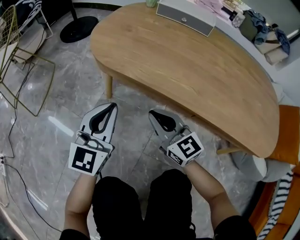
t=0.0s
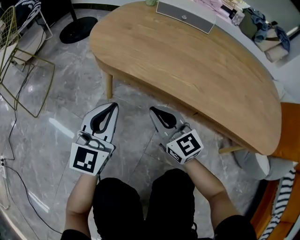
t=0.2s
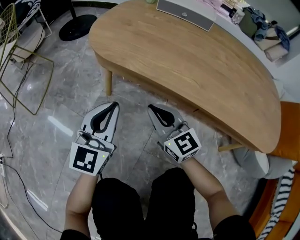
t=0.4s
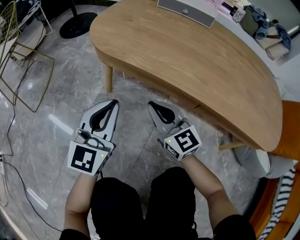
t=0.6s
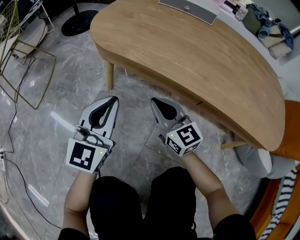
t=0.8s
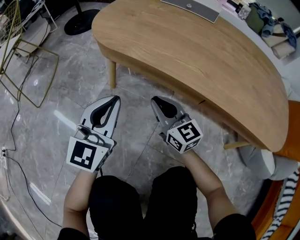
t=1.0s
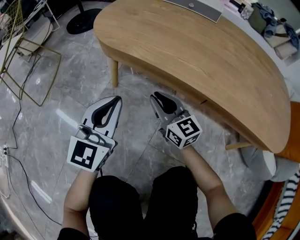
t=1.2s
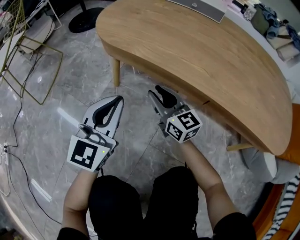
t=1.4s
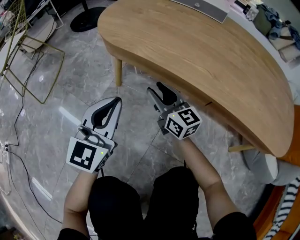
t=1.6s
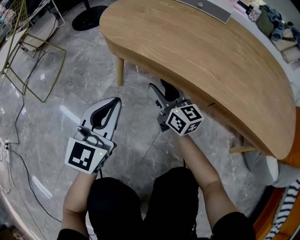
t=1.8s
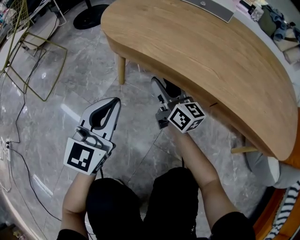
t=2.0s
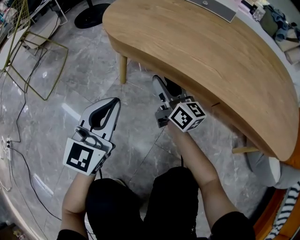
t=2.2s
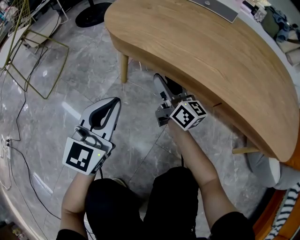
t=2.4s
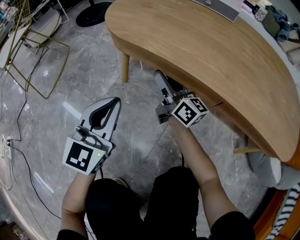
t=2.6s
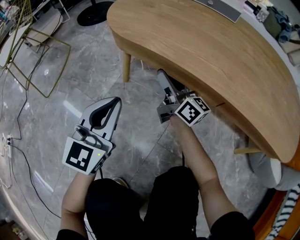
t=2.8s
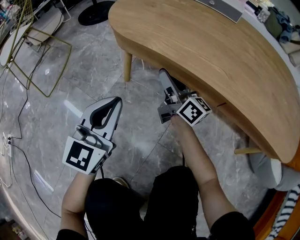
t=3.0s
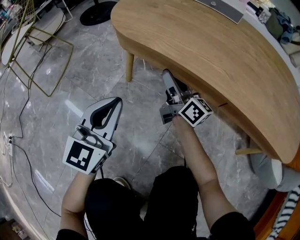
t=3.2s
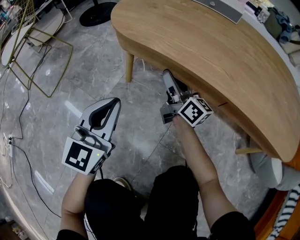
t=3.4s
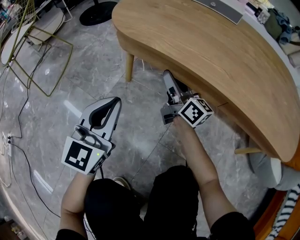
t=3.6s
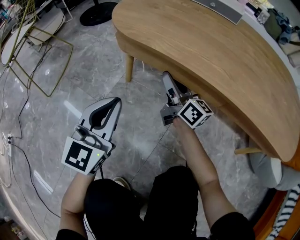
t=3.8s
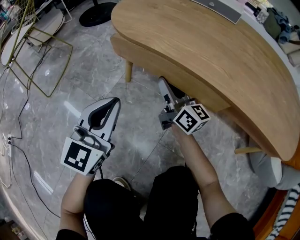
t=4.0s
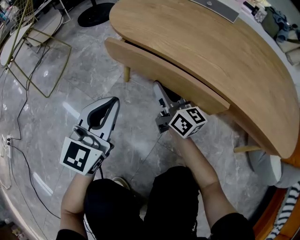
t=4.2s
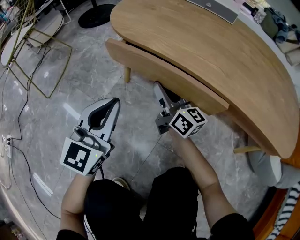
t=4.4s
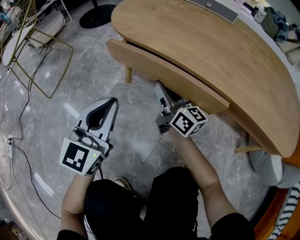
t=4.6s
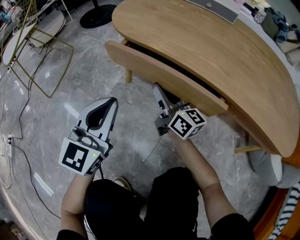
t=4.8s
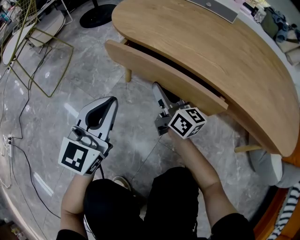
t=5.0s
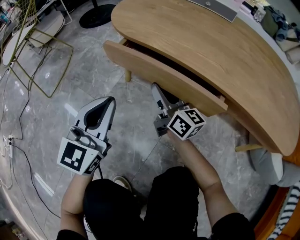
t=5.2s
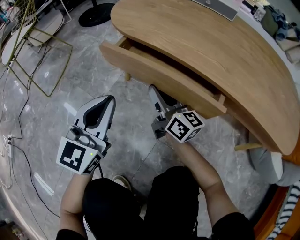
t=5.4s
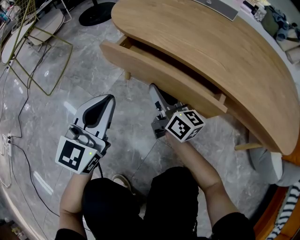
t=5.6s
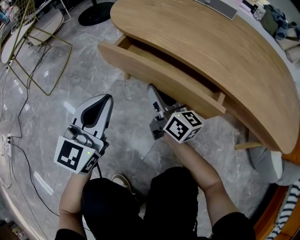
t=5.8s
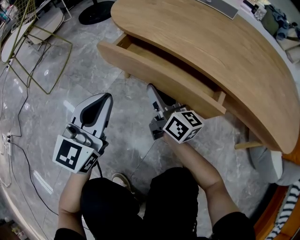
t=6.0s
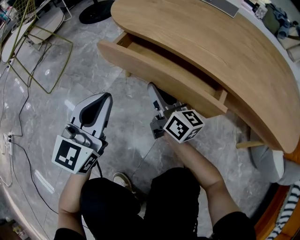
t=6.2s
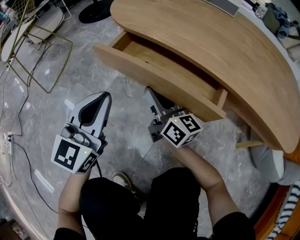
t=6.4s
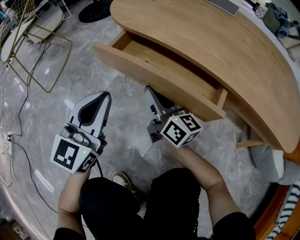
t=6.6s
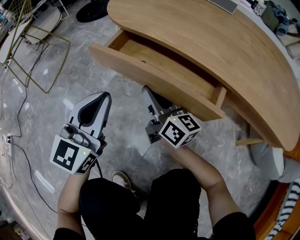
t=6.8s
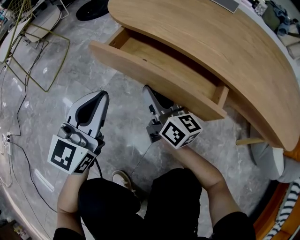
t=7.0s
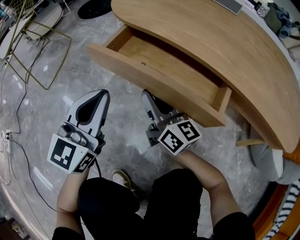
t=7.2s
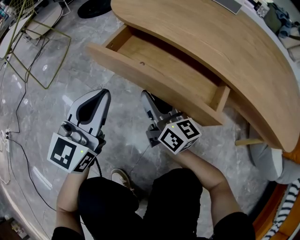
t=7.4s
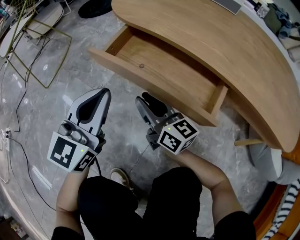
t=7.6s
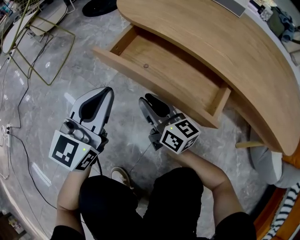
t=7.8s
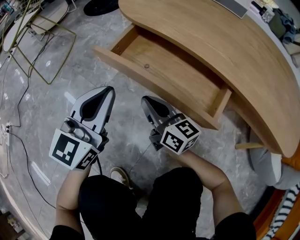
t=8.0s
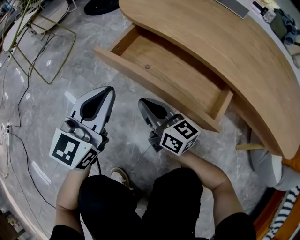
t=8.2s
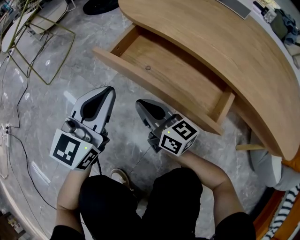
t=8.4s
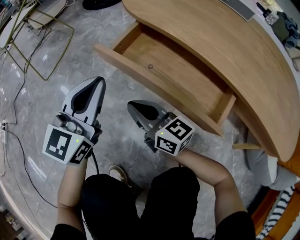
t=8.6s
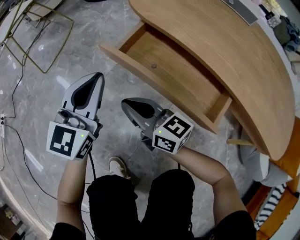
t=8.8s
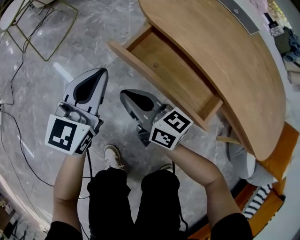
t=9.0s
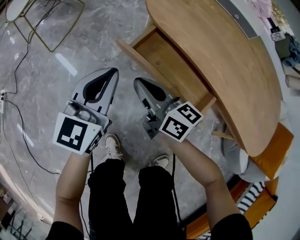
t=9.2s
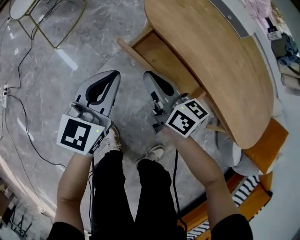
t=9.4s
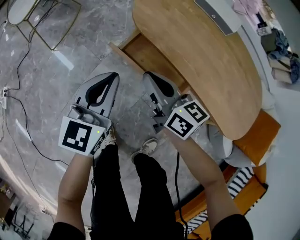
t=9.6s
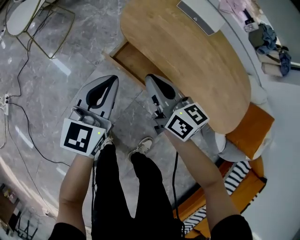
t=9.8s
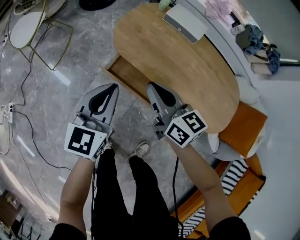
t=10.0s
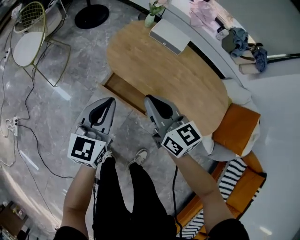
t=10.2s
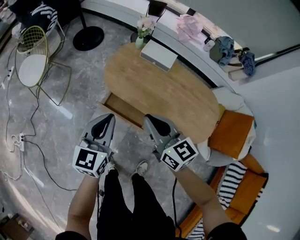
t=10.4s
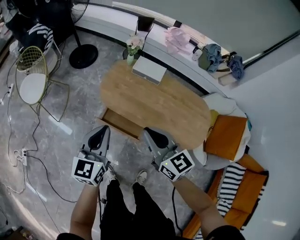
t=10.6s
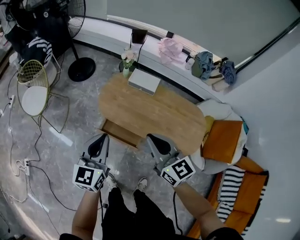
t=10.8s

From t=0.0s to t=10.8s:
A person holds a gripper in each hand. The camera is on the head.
From t=0.0s to t=1.6s: The right gripper shifts about 10 cm forward and downward, and opens its fingers.
From t=1.6s to t=3.0s: The right gripper shifts by about 5 cm, and turns by approximately 30 degrees.
From t=3.0s to t=4.6s: The right gripper moves about 5 cm, and closes its fingers.
From t=4.6s to t=6.2s: There are only small adjustments of the grippers.
From t=6.2s to t=7.8s: The right gripper travels backward by about 5 cm.
From t=7.8s to t=9.2s: The right gripper goes approximately 15 cm upward, and closes up, while the left gripper is displaced upward by about 10 cm.
From t=9.2s to t=10.8s: The two grippers go some 50 cm upward. The right gripper changes its angle by roughly 40 degrees.

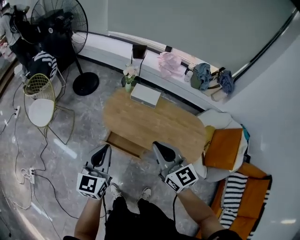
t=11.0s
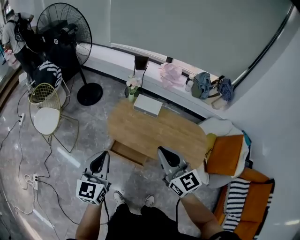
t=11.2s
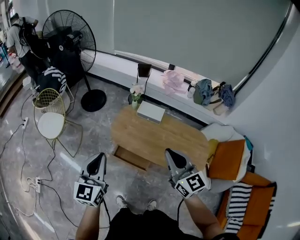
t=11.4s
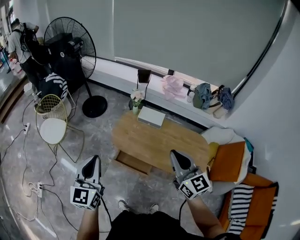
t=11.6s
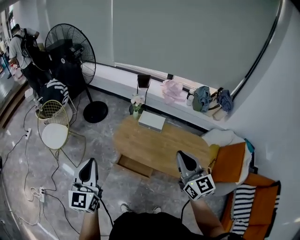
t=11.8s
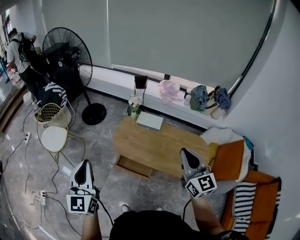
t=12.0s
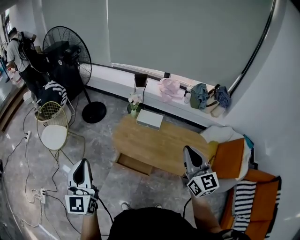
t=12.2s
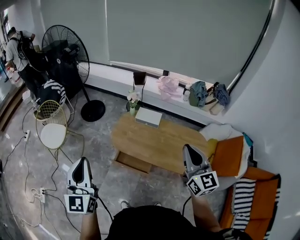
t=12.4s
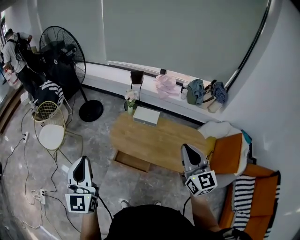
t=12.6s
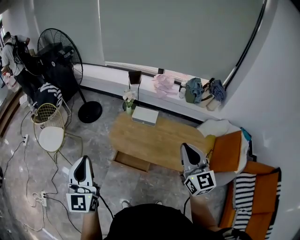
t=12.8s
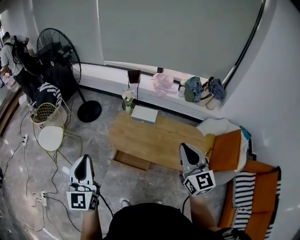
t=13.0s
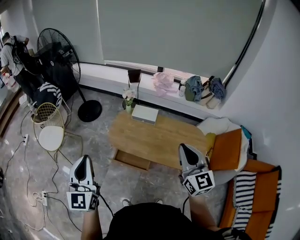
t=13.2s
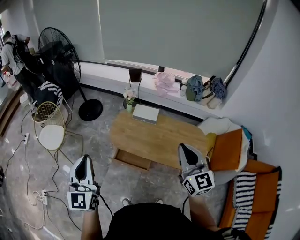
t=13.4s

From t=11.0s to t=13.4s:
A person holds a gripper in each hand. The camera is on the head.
From t=11.0s to t=12.2s: The left gripper goes roughly 20 cm upward and to the left, and turns by roughly 20 degrees. Meanwhile the right gripper shifts roughly 15 cm upward and to the right, and rotates roughly 20 degrees.
From t=12.2s to t=13.4s: The grippers move only a little.

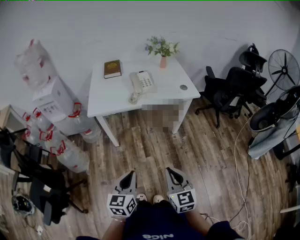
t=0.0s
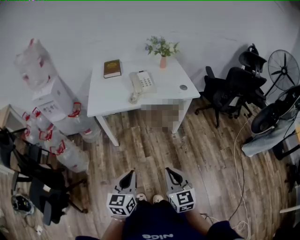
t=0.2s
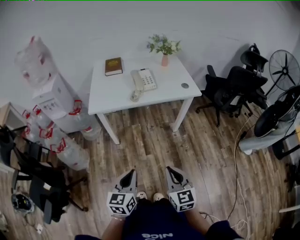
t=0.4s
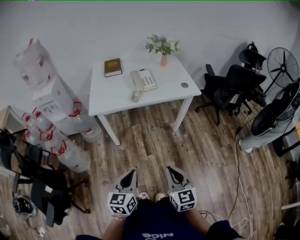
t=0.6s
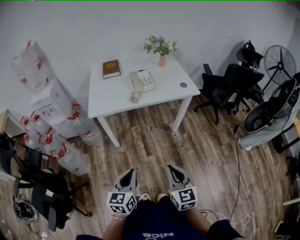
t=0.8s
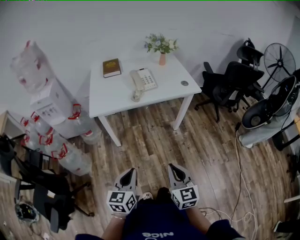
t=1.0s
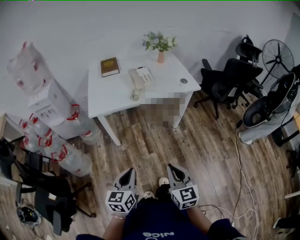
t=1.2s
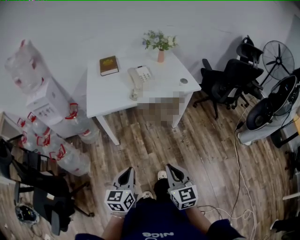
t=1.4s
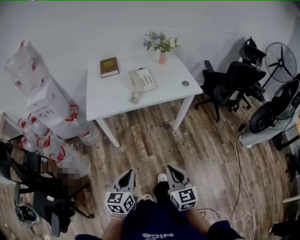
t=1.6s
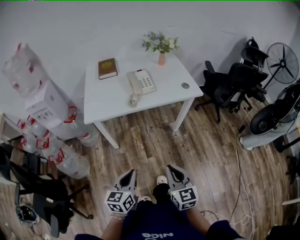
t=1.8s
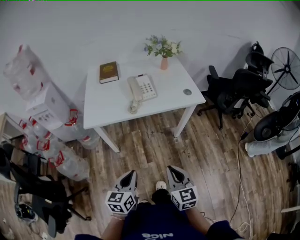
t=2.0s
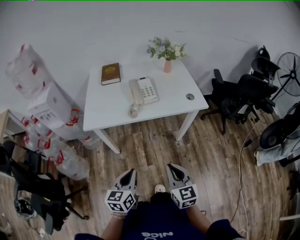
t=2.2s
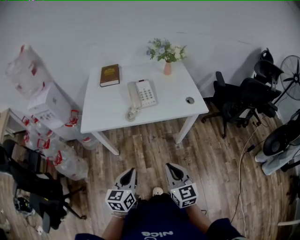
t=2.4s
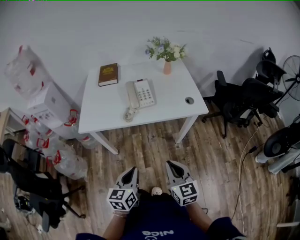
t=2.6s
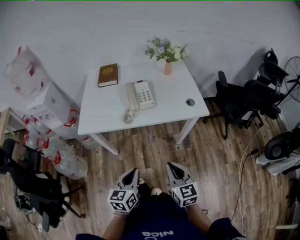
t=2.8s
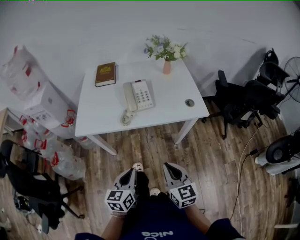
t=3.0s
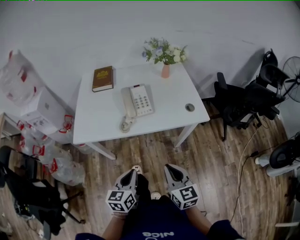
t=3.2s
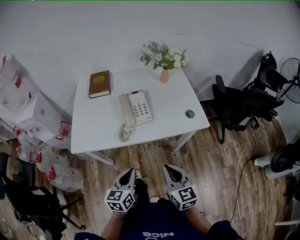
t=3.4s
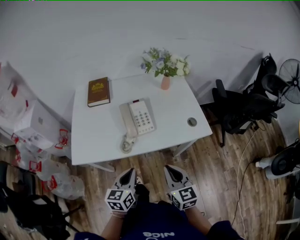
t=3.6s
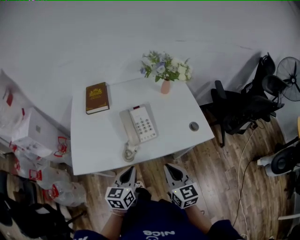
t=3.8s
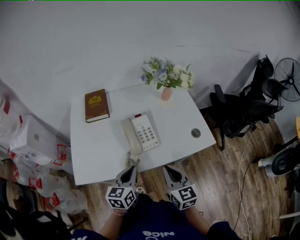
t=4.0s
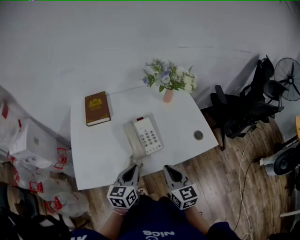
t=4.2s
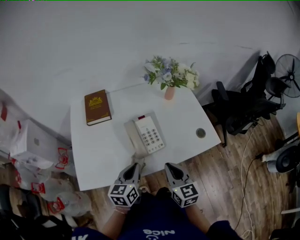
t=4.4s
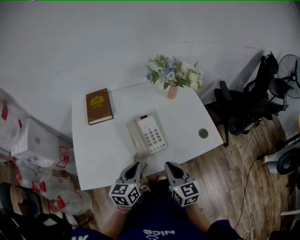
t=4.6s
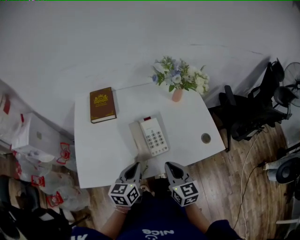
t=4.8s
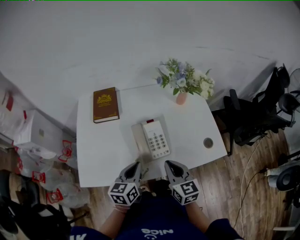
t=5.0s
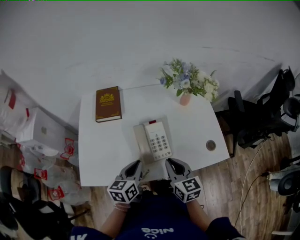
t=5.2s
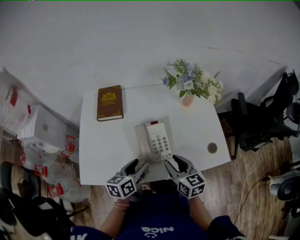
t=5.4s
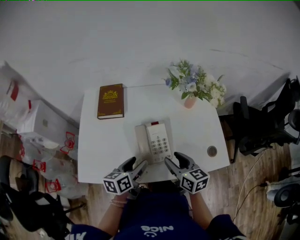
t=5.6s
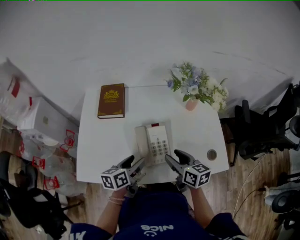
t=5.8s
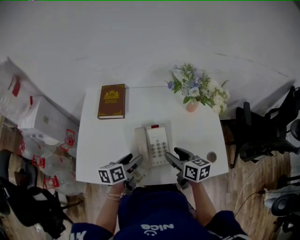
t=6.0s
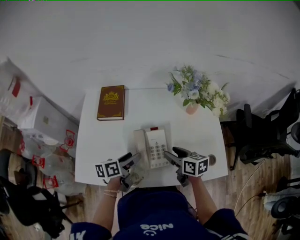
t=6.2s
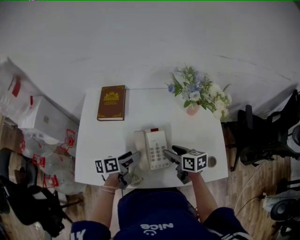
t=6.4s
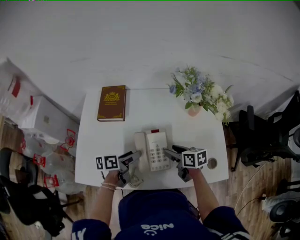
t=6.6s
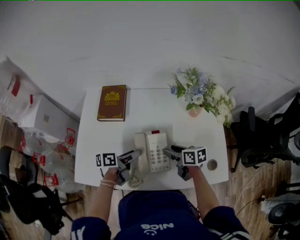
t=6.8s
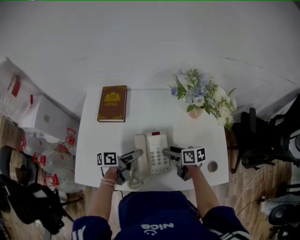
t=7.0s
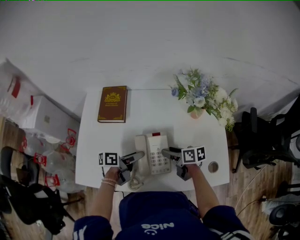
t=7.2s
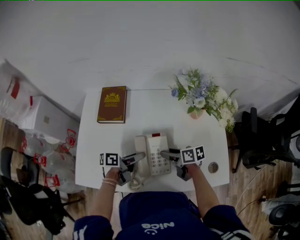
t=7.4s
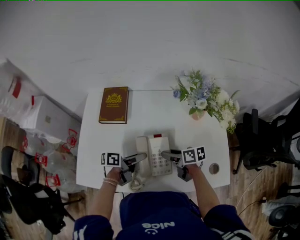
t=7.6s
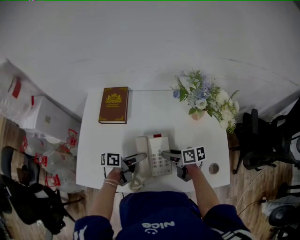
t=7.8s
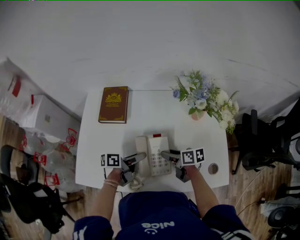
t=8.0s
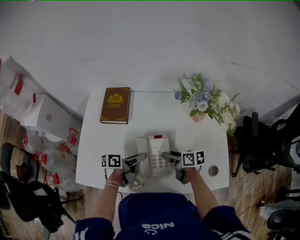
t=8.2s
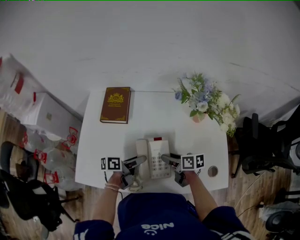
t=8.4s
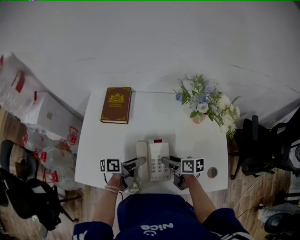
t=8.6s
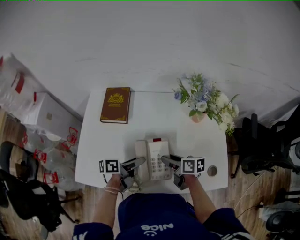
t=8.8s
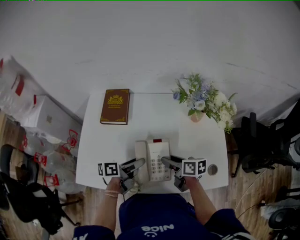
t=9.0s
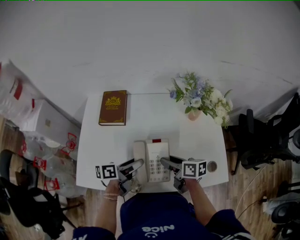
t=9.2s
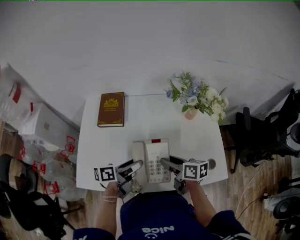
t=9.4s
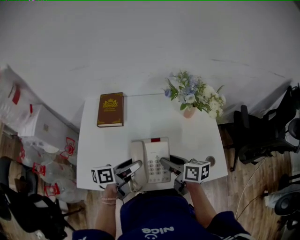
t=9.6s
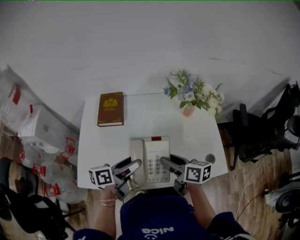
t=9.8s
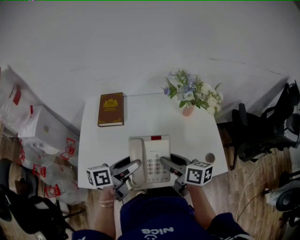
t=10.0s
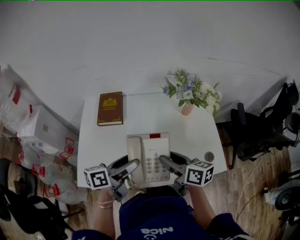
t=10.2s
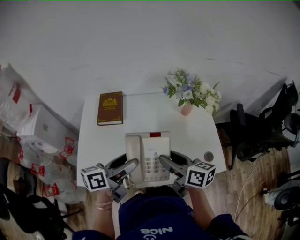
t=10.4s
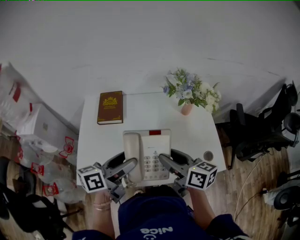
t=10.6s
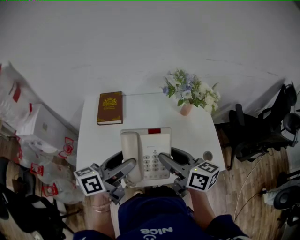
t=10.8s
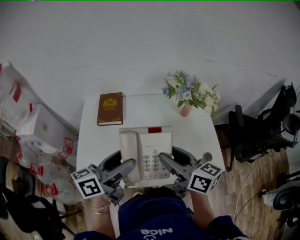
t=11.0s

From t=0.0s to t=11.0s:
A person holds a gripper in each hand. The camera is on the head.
From t=0.0s to t=1.6s: The right gripper ends up approximately 5 cm from where it was, while the left gripper shifts approximately 5 cm to the left.
From t=1.6s to t=3.2s: Both grippers travel together forward and to the right, approximately 25 cm.
From t=3.2s to t=4.8s: The grippers both shift forward by some 25 cm.
From t=4.8s to t=6.2s: The two grippers go roughly 15 cm forward. The left gripper changes its angle by about 30 degrees, and opens its fingers. Meanwhile the right gripper swivels approximately 30 degrees, and opens.
From t=6.2s to t=7.8s: The right gripper shifts some 5 cm downward, and rotates approximately 20 degrees, while the left gripper changes place by some 5 cm, and rotates some 20 degrees.
From t=7.8s to t=9.4s: The left gripper is displaced upward by roughly 10 cm; the right gripper moves upward and backward, approximately 10 cm.
From t=9.4s to t=11.0s: The two grippers go about 20 cm upward. The right gripper swivels some 30 degrees; the left gripper swivels some 30 degrees.
